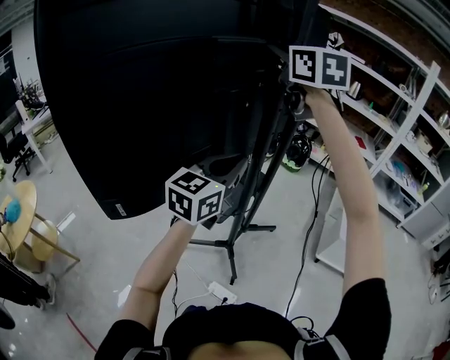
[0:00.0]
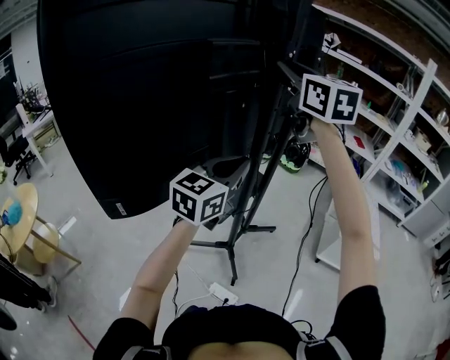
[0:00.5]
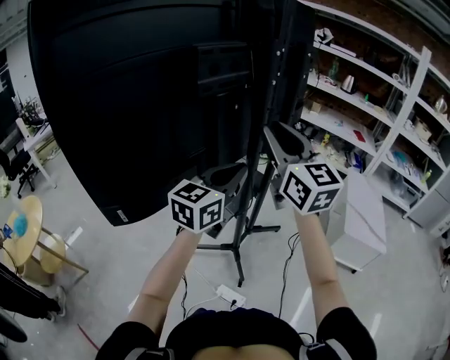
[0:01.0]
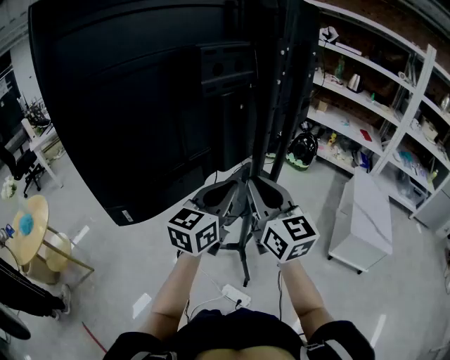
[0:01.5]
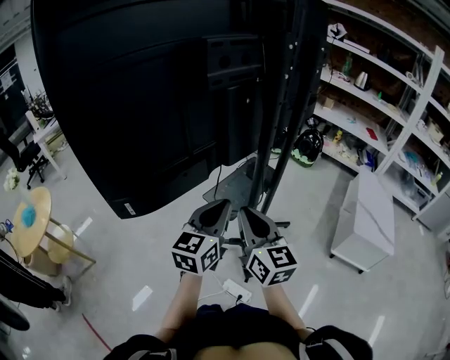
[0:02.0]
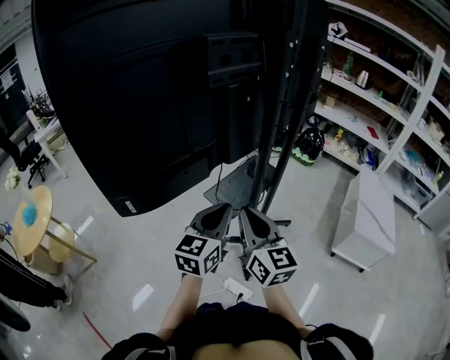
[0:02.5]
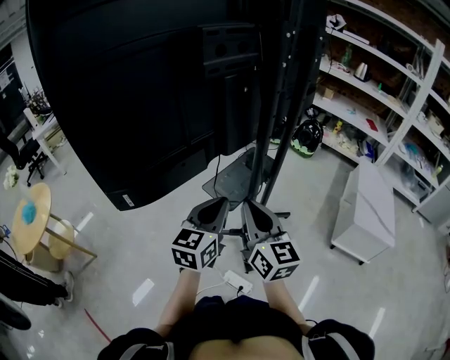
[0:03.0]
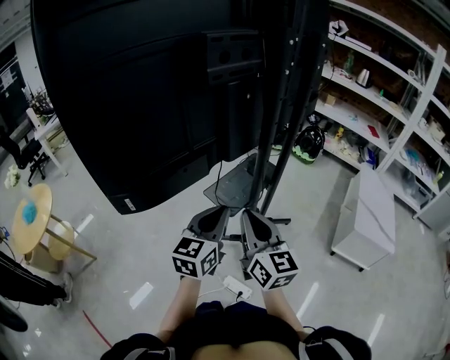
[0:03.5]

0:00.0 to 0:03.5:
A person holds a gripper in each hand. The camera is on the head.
0:00.0 to 0:02.0: The right gripper heads downward and backward, covering about 40 cm, and swivels roughly 20 degrees; the left gripper moves downward and backward, some 15 cm.
0:02.0 to 0:03.5: There are only small adjustments of the grippers.

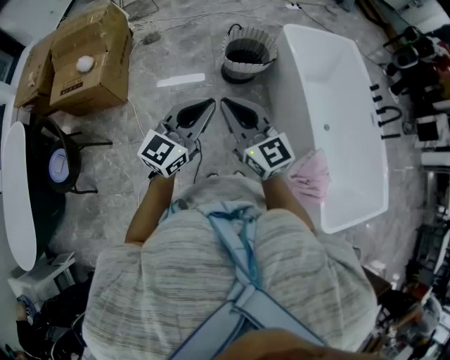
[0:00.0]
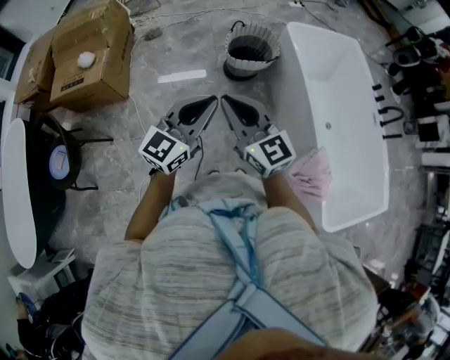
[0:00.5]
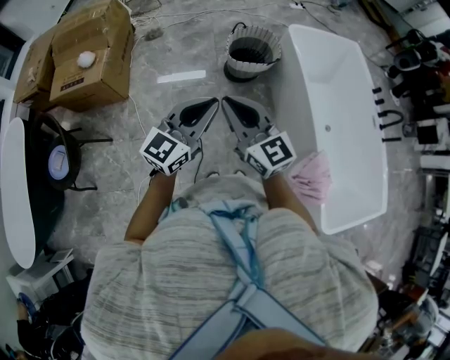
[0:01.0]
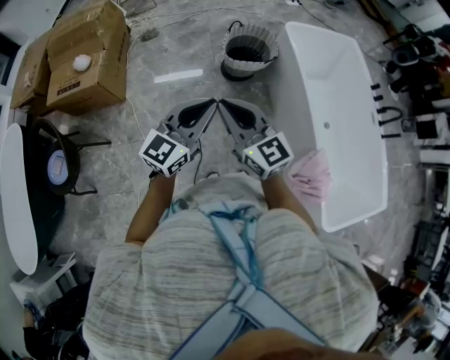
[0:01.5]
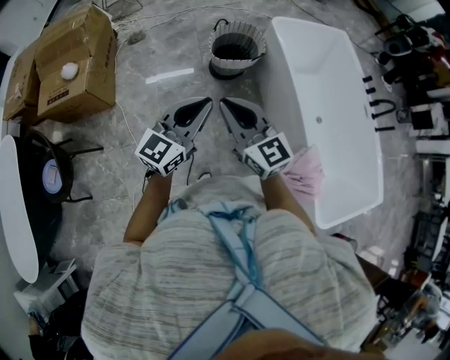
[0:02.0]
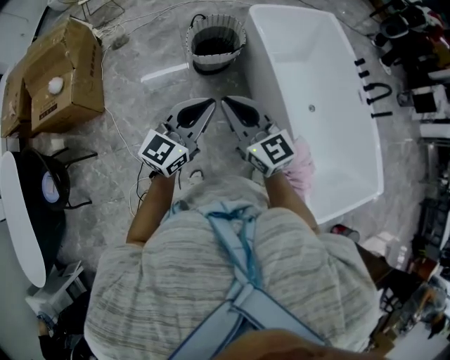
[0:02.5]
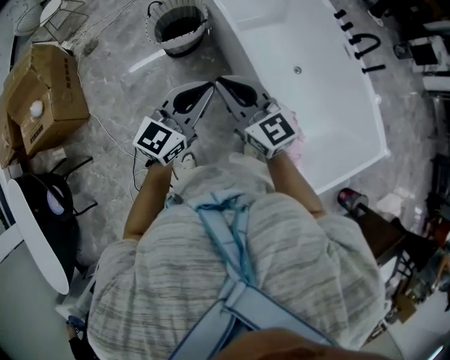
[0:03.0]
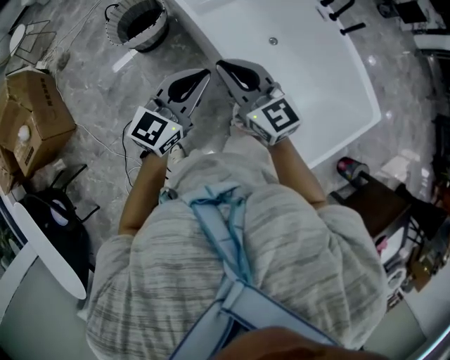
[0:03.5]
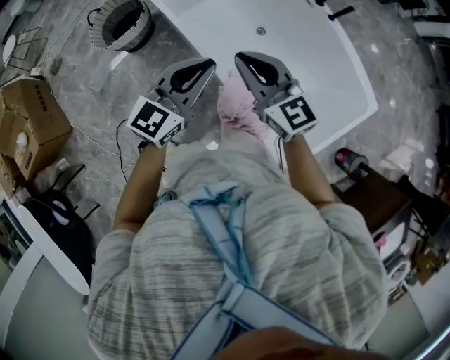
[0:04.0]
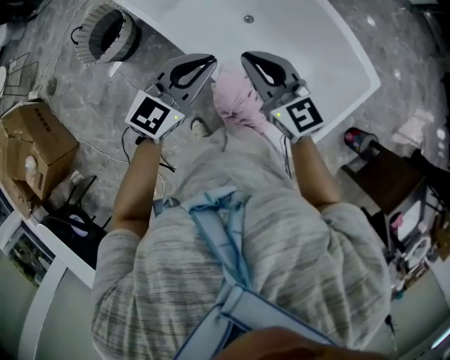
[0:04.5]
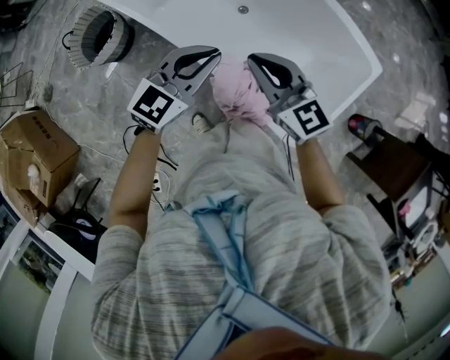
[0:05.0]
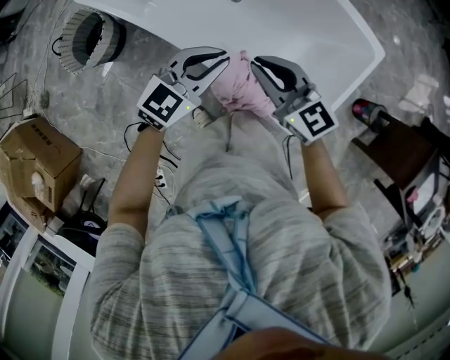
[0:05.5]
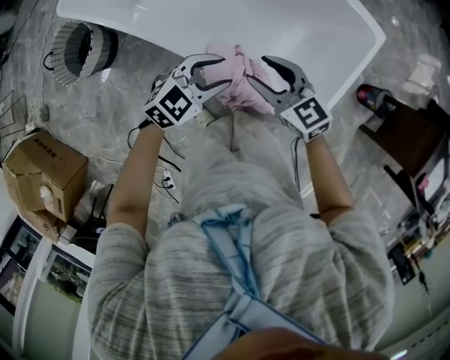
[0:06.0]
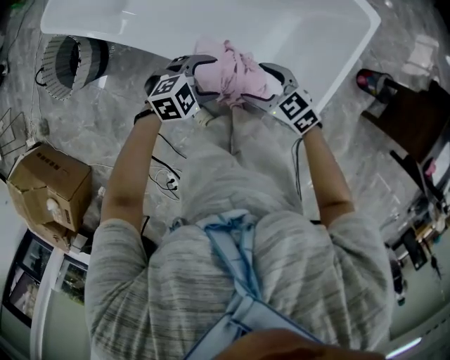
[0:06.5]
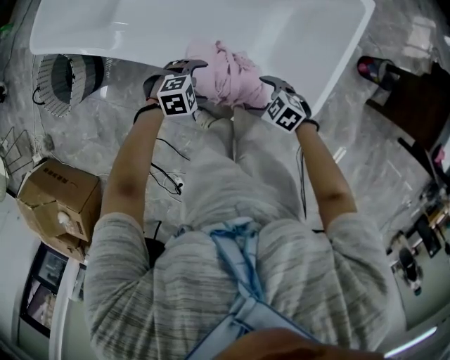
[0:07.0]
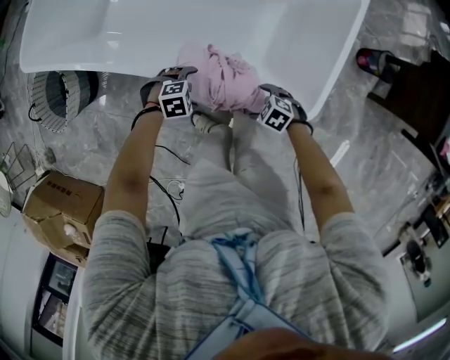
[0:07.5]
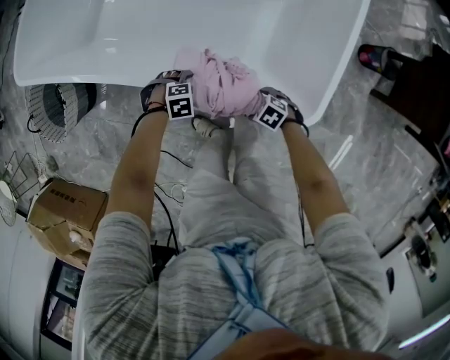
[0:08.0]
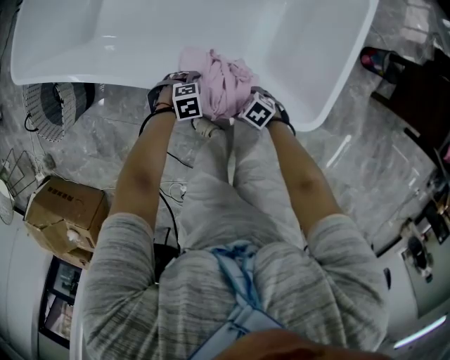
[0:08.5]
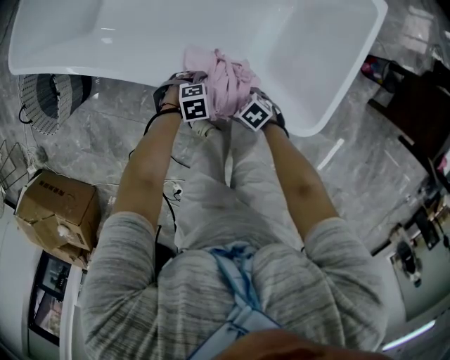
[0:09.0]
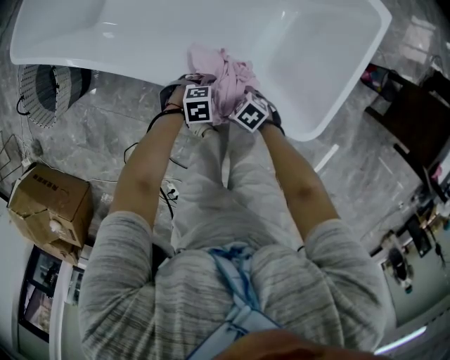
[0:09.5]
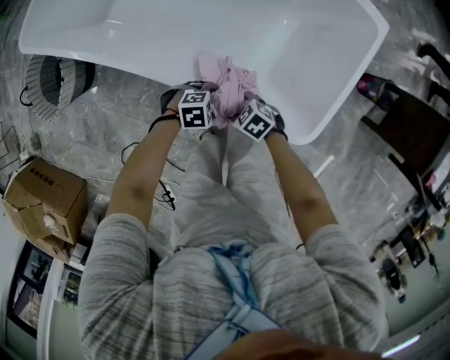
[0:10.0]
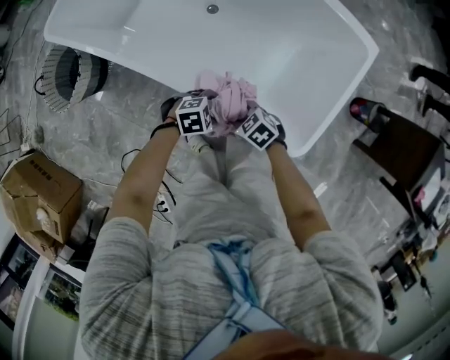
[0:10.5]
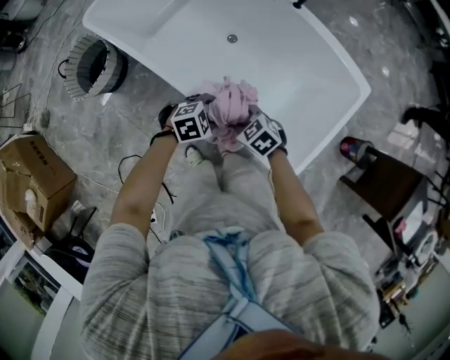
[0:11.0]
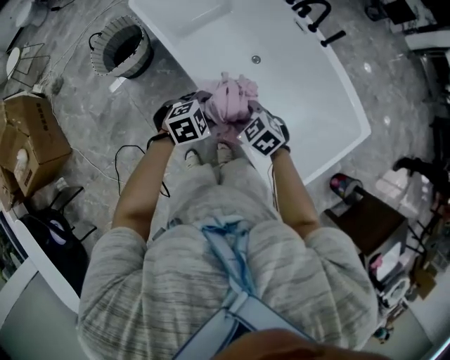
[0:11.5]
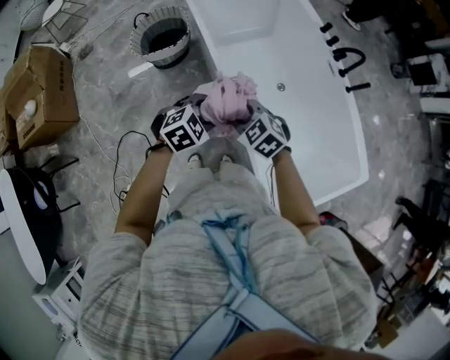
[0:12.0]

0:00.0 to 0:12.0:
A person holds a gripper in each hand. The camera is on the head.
0:00.0 to 0:02.0: The right gripper changes place by some 5 cm, while the left gripper heads forward, covering approximately 5 cm.
0:02.0 to 0:04.0: Both grippers are carried to the right, about 60 cm. The left gripper changes its angle by approximately 30 degrees. Meanwhile the right gripper rotates about 20 degrees.
0:04.0 to 0:06.0: The grippers both shift downward by about 20 cm. The right gripper changes its angle by some 20 degrees, and opens up. The left gripper rotates about 50 degrees, and opens its fingers.
0:06.0 to 0:08.0: Both grippers move downward, some 35 cm. The right gripper angles its fingers downward, by about 40 degrees, and opens. The left gripper tilts its fingers some 40 degrees downward, and opens its fingers.
0:08.0 to 0:10.0: The right gripper goes approximately 10 cm to the right and upward, and closes. The left gripper goes roughly 10 cm to the left, turns by some 20 degrees, and closes.
0:10.0 to 0:12.0: Both grippers move upward, roughly 35 cm. The left gripper turns by some 70 degrees. The right gripper rolls counterclockwise, seen from behind, by approximately 50 degrees.

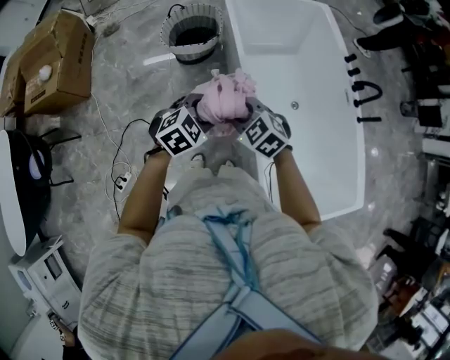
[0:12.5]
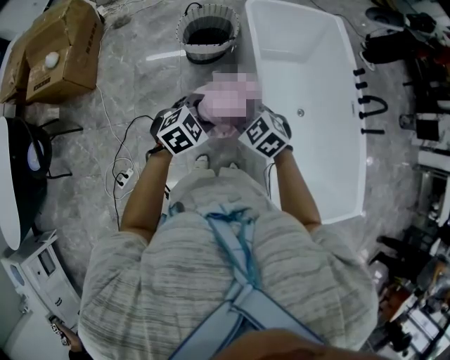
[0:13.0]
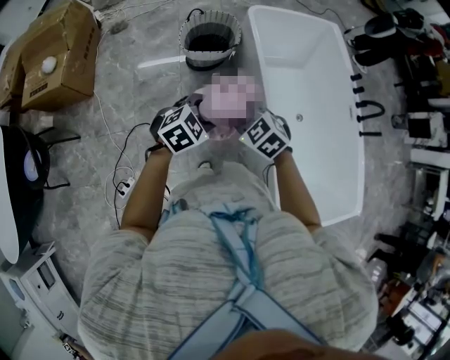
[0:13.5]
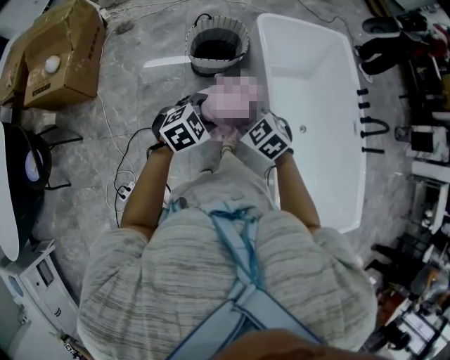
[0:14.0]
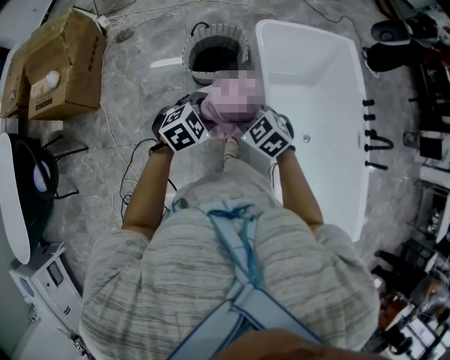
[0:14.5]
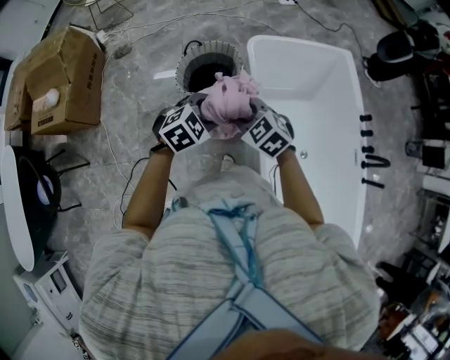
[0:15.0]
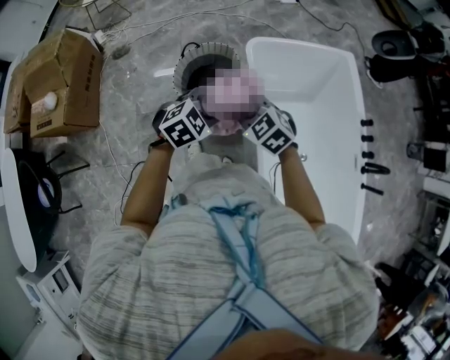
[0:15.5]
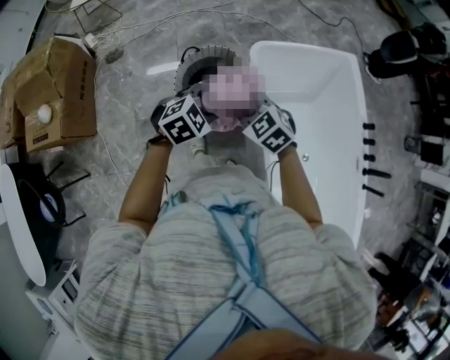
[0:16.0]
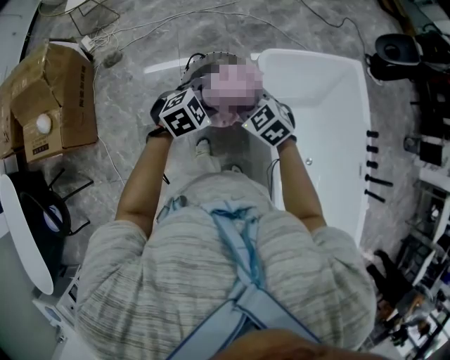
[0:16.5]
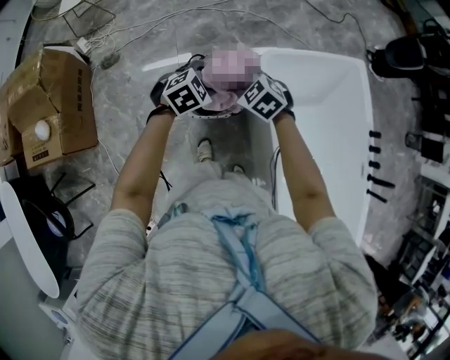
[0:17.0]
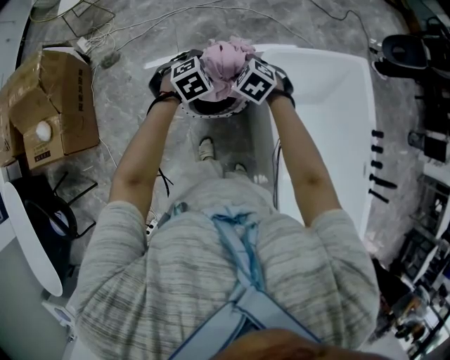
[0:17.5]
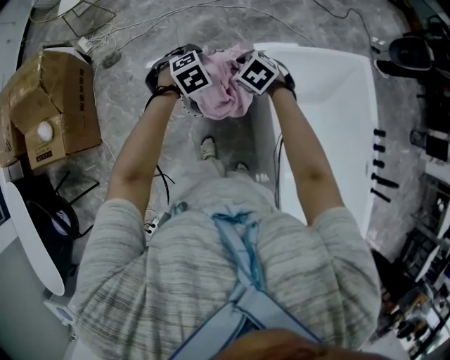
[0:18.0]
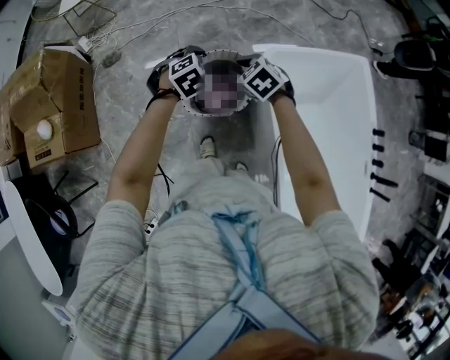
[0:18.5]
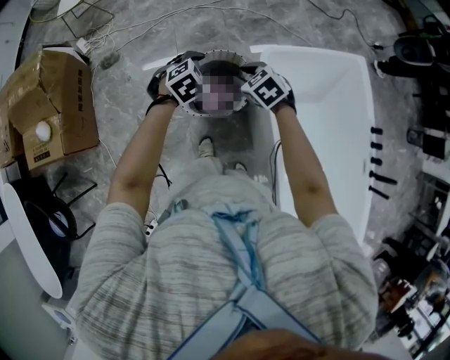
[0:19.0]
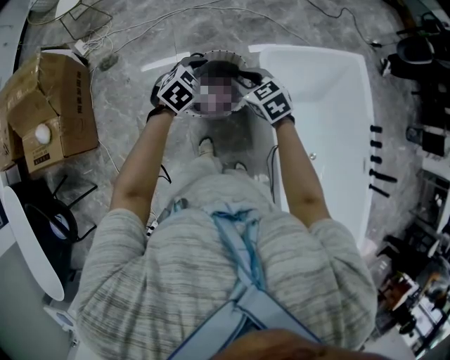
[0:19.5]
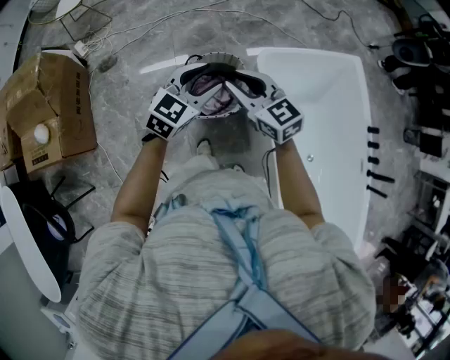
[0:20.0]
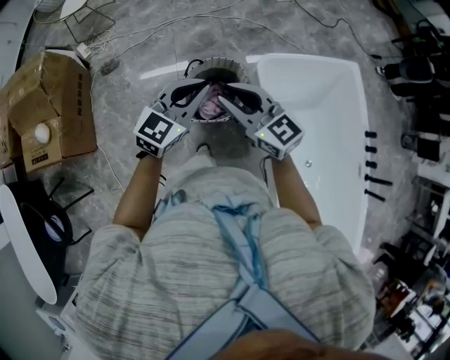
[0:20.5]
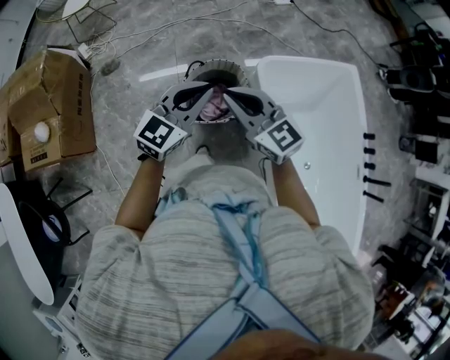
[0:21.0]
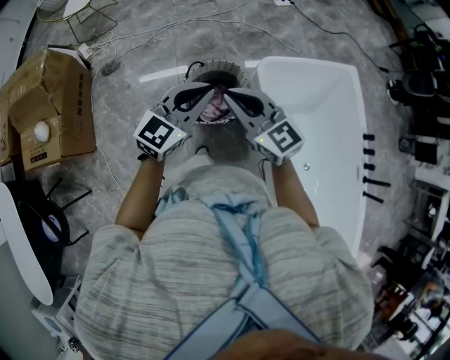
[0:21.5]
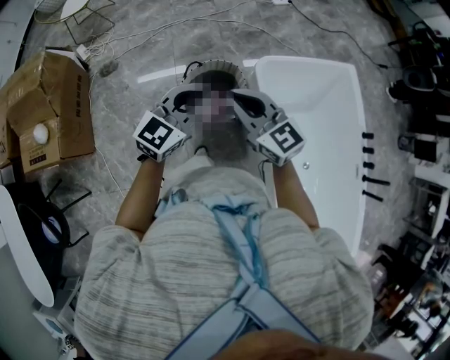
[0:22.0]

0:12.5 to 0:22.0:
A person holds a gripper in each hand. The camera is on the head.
0:12.5 to 0:14.5: Both grippers travel together forward and to the left, about 25 cm.
0:14.5 to 0:16.5: Both grippers travel together forward, some 30 cm.
0:16.5 to 0:18.0: The right gripper shifts roughly 15 cm forward and downward, while the left gripper goes some 20 cm forward, to the left and downward, and swivels some 20 degrees.
0:18.0 to 0:20.0: Both grippers move upward and backward, about 15 cm. The left gripper points its fingers some 40 degrees further upward, while the right gripper tips its fingers upward by some 50 degrees.
0:20.0 to 0:22.0: The right gripper is displaced backward and upward by about 10 cm. Meanwhile the left gripper shifts approximately 10 cm upward and backward, and closes its fingers.

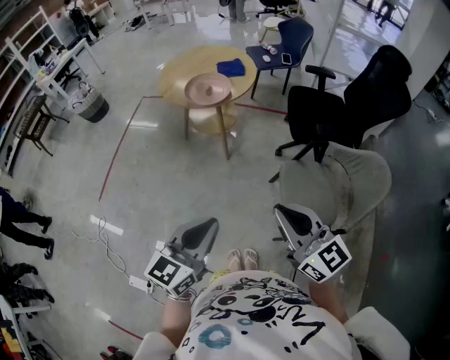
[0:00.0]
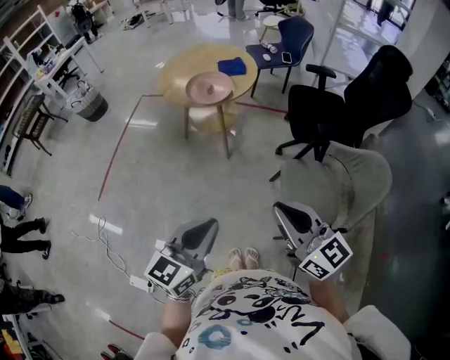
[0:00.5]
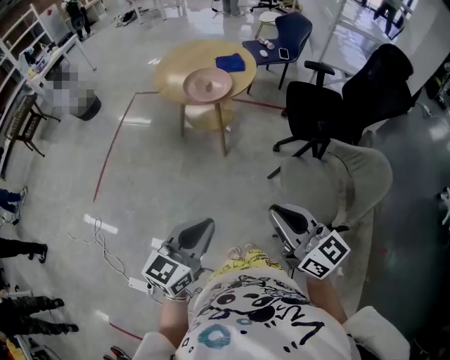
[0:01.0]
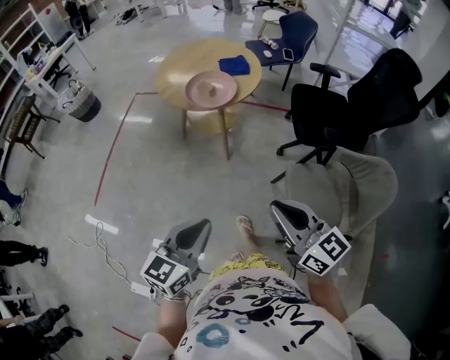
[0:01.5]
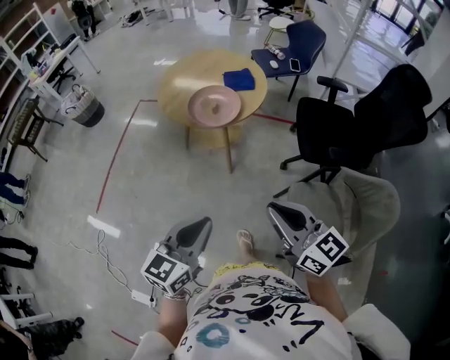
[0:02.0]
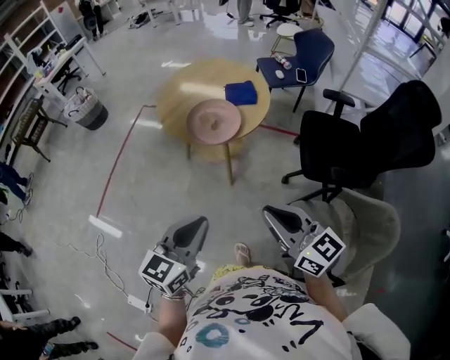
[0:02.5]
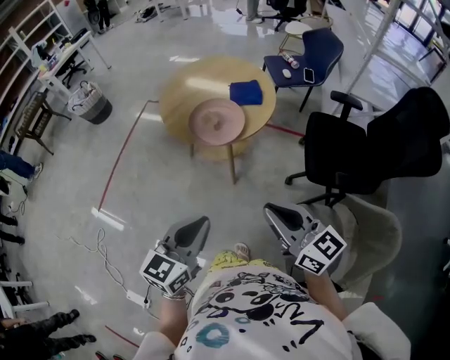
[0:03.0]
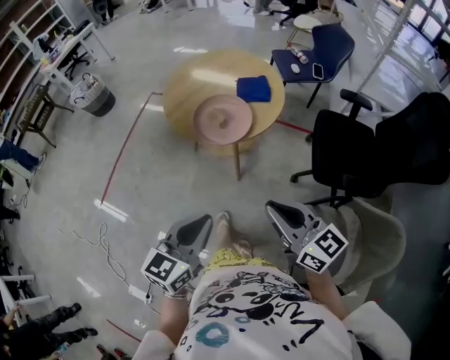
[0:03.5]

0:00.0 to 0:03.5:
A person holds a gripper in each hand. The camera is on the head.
0:00.0 to 0:02.0: Both grippers move forward, some 20 cm.
0:02.0 to 0:03.5: The grippers both shift forward by approximately 15 cm.
